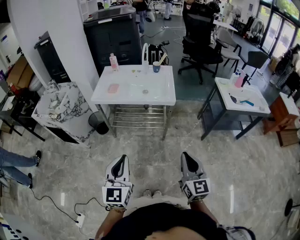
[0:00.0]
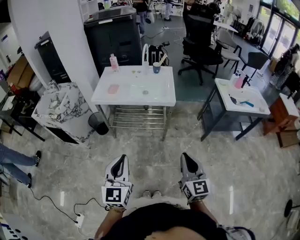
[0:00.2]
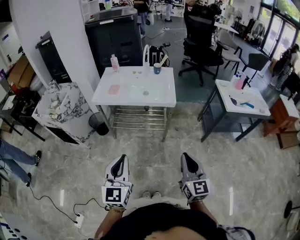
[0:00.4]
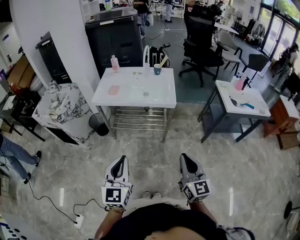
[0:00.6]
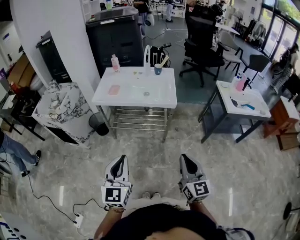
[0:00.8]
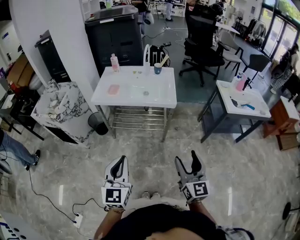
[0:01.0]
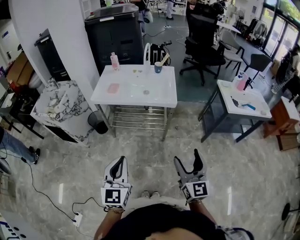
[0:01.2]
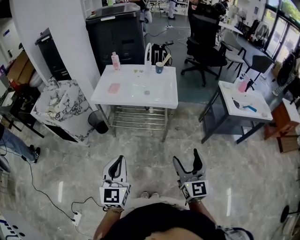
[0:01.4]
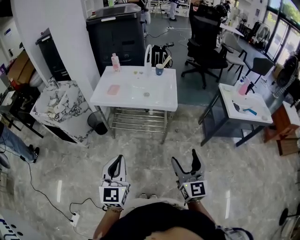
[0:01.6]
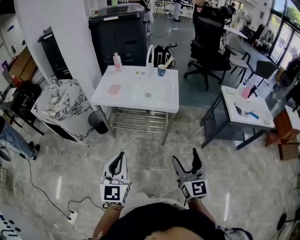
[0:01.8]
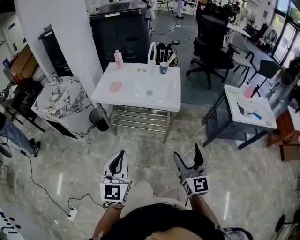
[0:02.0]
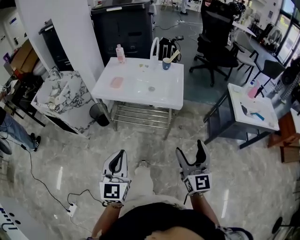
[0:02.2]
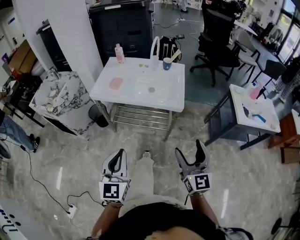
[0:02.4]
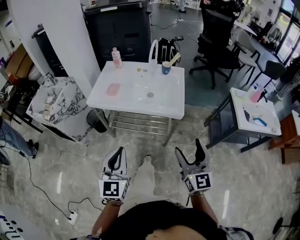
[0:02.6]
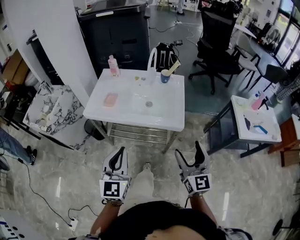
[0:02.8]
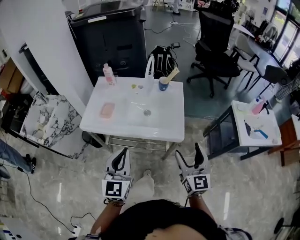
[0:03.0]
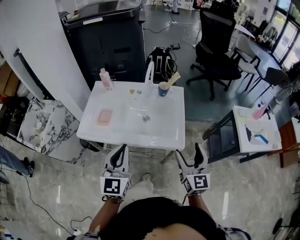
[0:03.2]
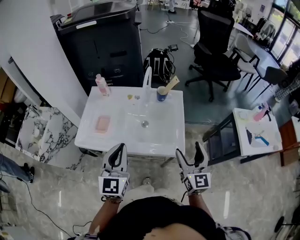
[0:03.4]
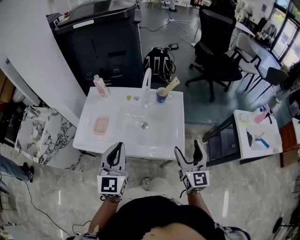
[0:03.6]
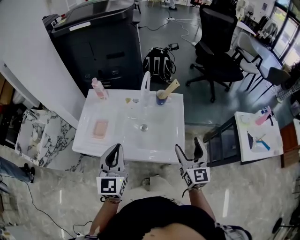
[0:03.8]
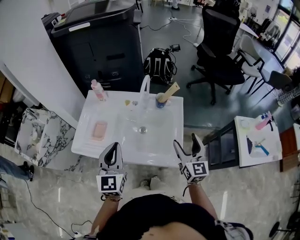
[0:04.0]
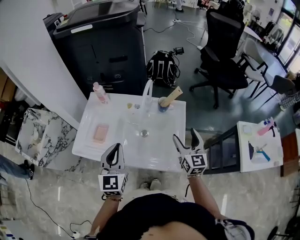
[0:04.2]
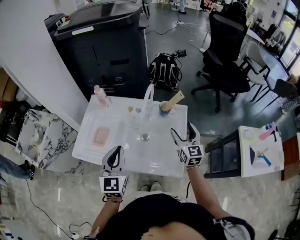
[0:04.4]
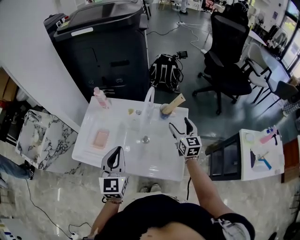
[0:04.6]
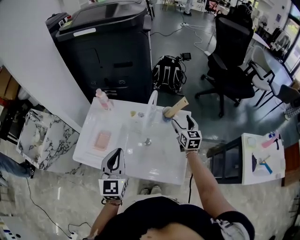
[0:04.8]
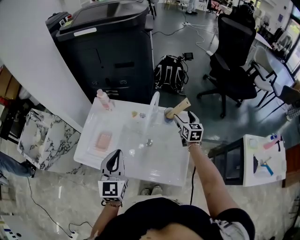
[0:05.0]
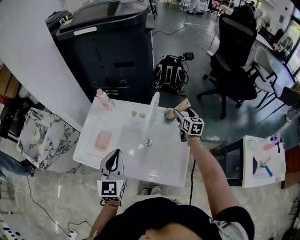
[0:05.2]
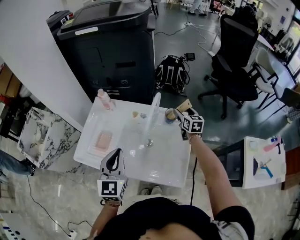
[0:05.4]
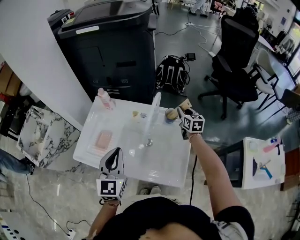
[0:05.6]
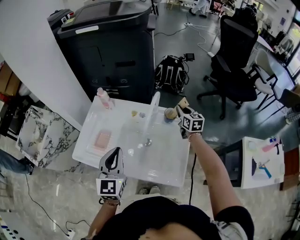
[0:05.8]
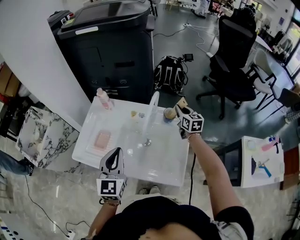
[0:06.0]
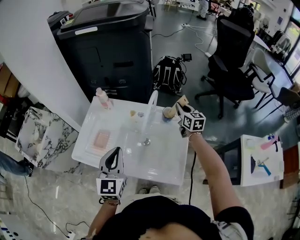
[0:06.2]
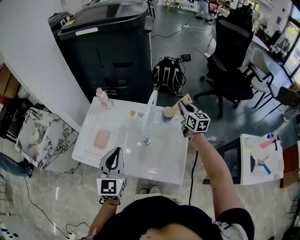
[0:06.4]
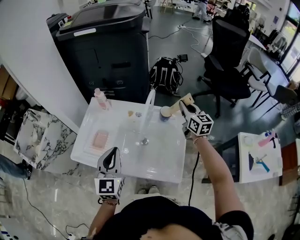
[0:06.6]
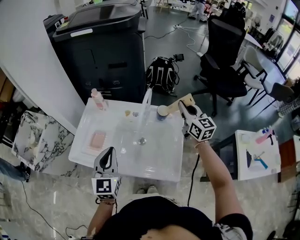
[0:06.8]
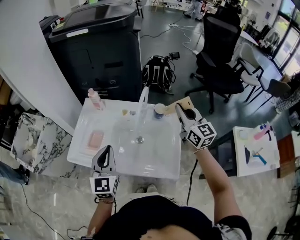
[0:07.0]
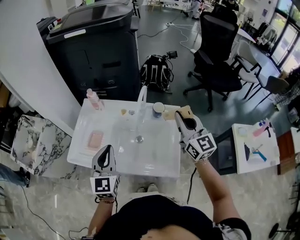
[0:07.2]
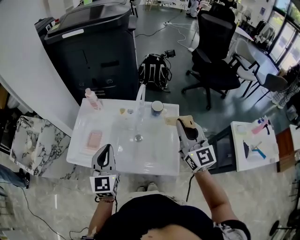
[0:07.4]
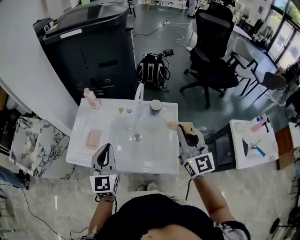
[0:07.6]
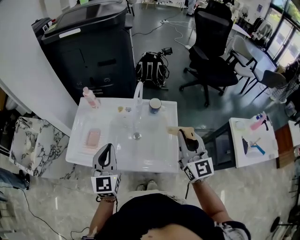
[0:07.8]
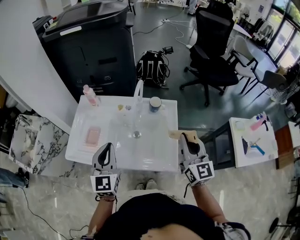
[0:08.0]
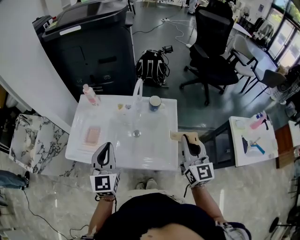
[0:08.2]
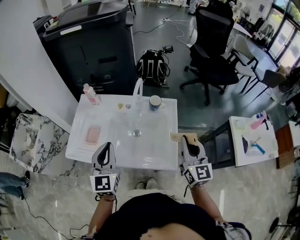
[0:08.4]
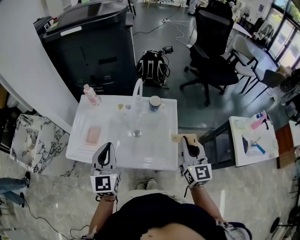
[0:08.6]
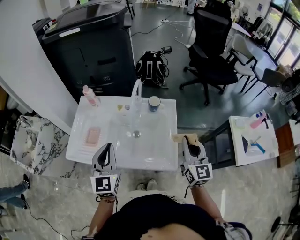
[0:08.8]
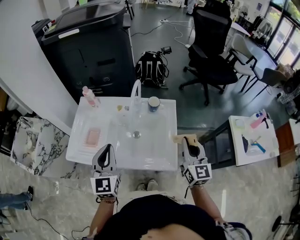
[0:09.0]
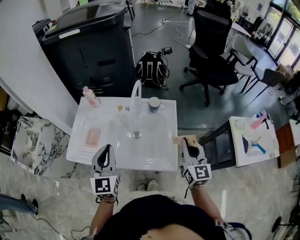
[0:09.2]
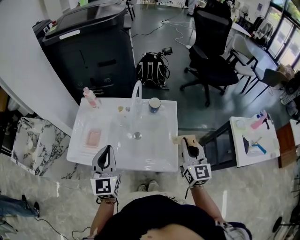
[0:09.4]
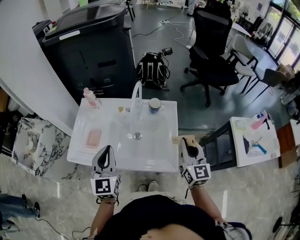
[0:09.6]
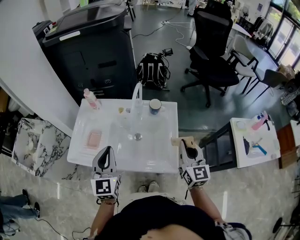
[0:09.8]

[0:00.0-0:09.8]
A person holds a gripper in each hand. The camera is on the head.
0:00.0 to 0:01.4: The right gripper opens.
0:01.4 to 0:02.8: Both grippers travel together forward, some 25 cm.
0:02.8 to 0:04.2: Both grippers travel together forward, about 35 cm.
0:04.2 to 0:05.6: The right gripper travels forward by approximately 25 cm, and closes its fingers.
0:05.6 to 0:07.0: The right gripper is displaced upward and backward by about 25 cm, and turns by approximately 30 degrees.
0:07.0 to 0:08.4: The right gripper is displaced backward by approximately 20 cm.
0:08.4 to 0:09.8: There are only small adjustments of the grippers.

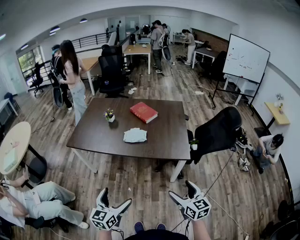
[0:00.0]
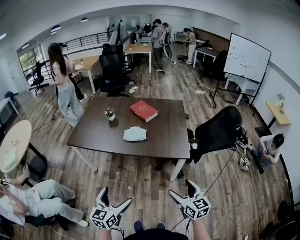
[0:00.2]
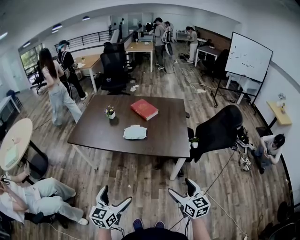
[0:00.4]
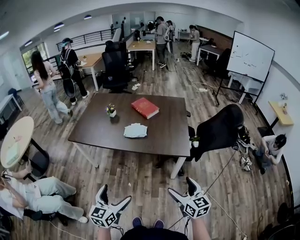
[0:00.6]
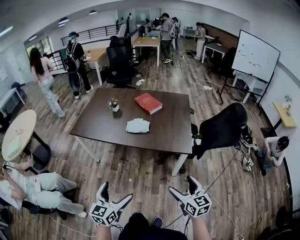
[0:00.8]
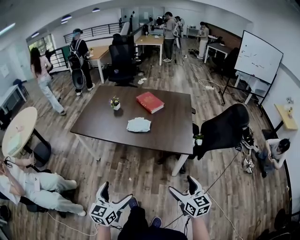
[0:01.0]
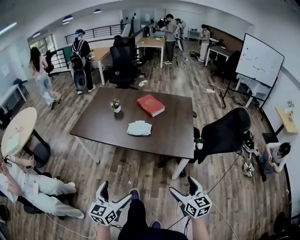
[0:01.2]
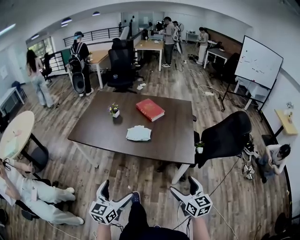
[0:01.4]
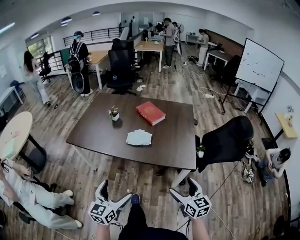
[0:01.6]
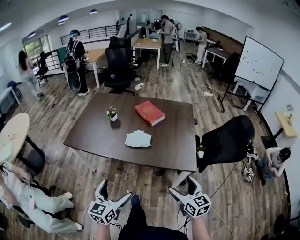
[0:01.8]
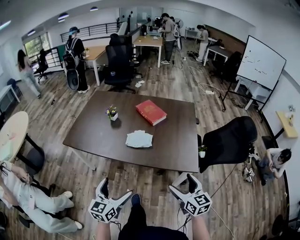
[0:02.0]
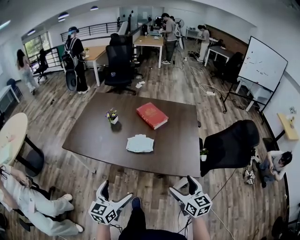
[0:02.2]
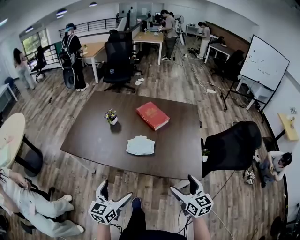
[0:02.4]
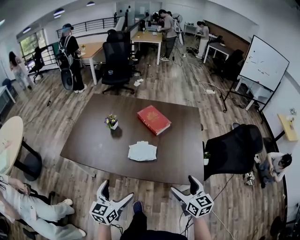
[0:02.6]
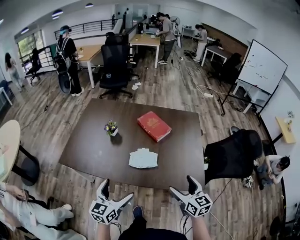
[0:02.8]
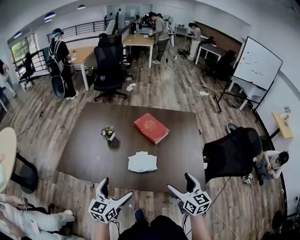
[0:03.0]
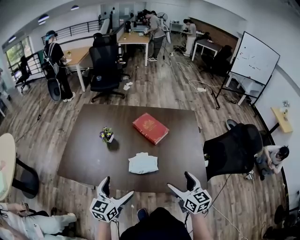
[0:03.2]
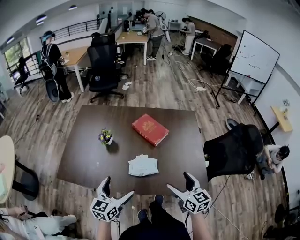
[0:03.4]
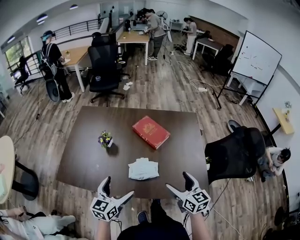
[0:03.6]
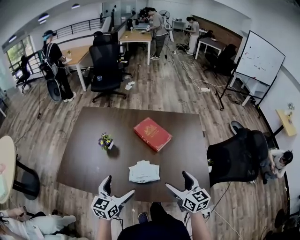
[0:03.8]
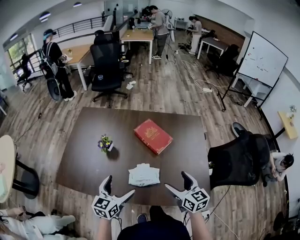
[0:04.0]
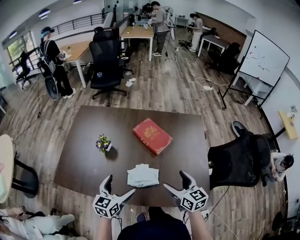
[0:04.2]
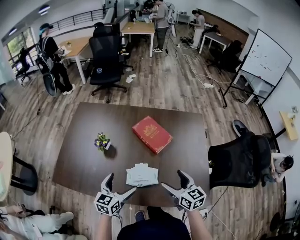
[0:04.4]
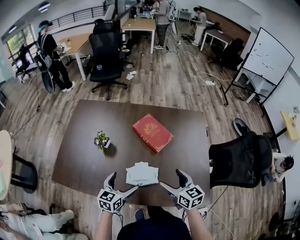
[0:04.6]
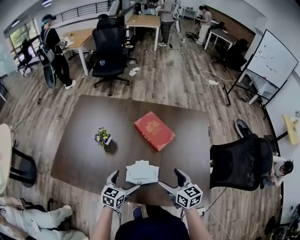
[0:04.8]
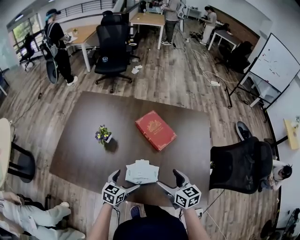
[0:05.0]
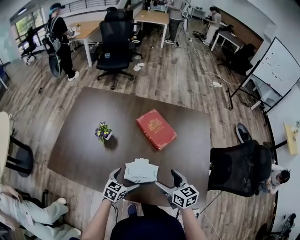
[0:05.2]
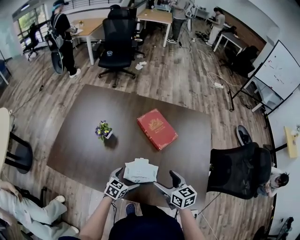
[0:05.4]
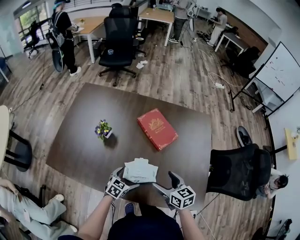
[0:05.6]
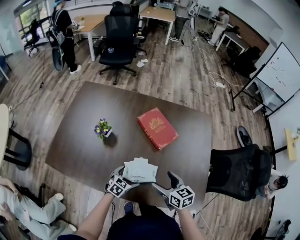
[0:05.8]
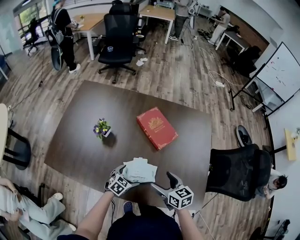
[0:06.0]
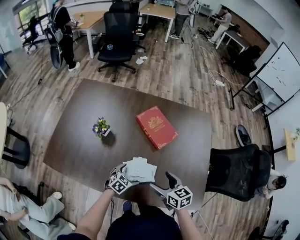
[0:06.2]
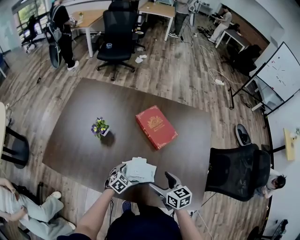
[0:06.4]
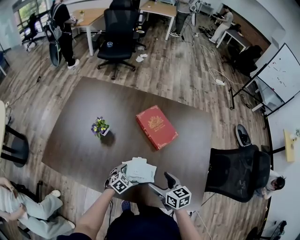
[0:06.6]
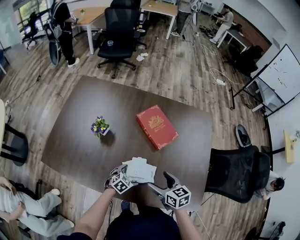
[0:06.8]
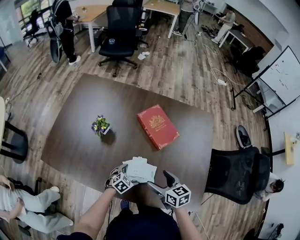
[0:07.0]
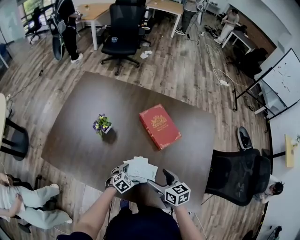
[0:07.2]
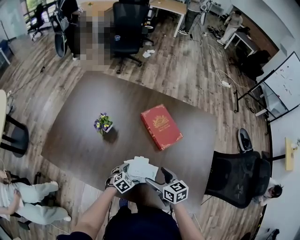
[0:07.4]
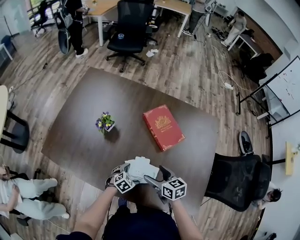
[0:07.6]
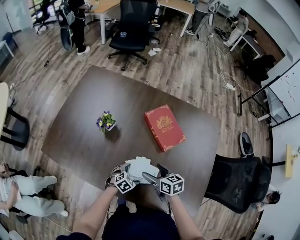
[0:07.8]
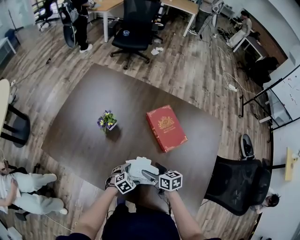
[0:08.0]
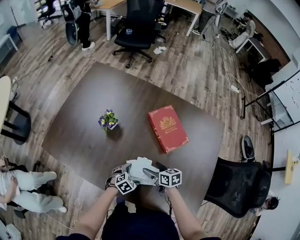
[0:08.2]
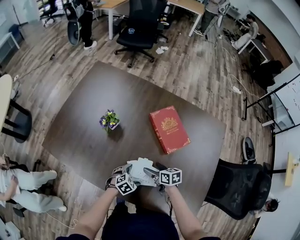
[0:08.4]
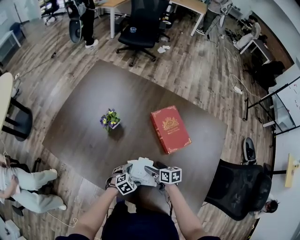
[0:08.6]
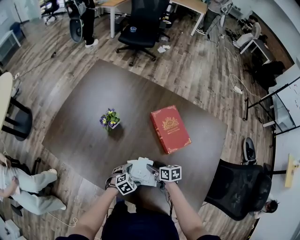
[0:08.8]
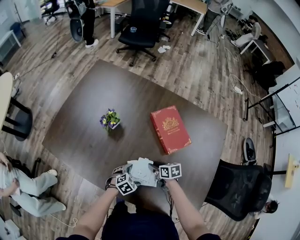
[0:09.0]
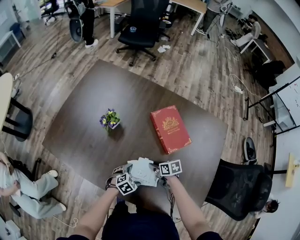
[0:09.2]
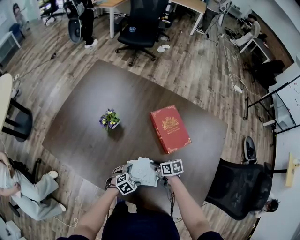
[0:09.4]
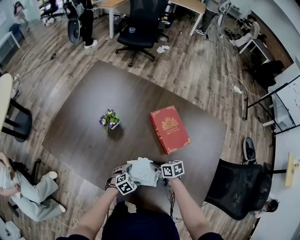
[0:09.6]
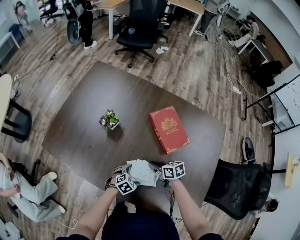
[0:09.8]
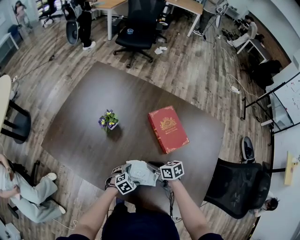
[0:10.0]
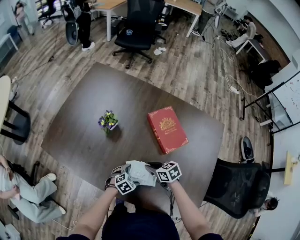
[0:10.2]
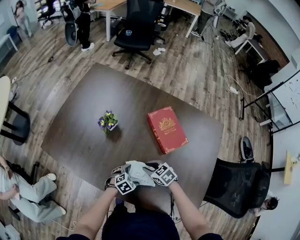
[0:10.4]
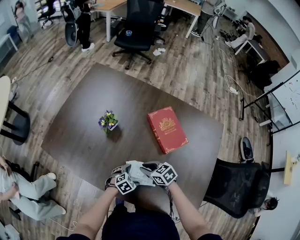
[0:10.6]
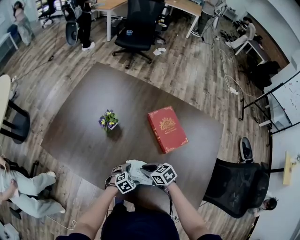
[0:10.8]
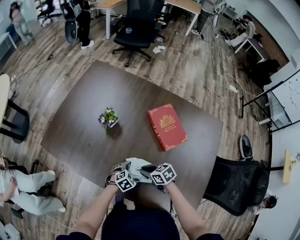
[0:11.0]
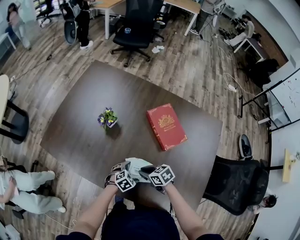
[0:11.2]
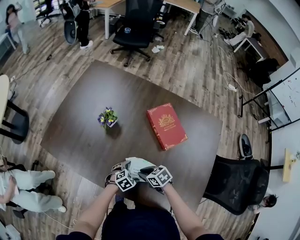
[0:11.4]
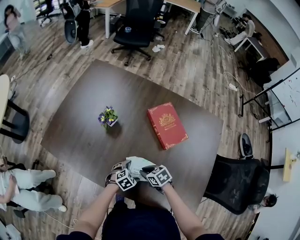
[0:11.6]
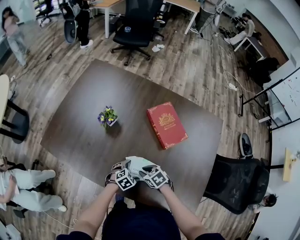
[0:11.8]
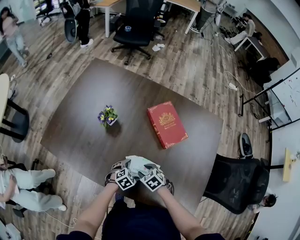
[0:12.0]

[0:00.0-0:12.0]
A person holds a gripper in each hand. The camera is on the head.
0:00.0 to 0:01.6: Both grippers travel together forward, roughly 10 cm.
0:01.6 to 0:03.0: The grippers both shift forward by about 30 cm.
0:03.0 to 0:04.4: The right gripper travels forward by approximately 15 cm, while the left gripper goes roughly 20 cm forward and downward.
0:04.4 to 0:06.0: The left gripper moves downward, roughly 20 cm, and changes its angle by roughly 30 degrees, while the right gripper is displaced downward by approximately 10 cm.
0:06.0 to 0:07.6: The left gripper goes approximately 5 cm downward; the right gripper travels to the left by roughly 5 cm.
0:07.6 to 0:09.0: The right gripper travels downward by about 15 cm, swivels roughly 20 degrees, and closes up.
0:09.0 to 0:10.4: The right gripper goes approximately 5 cm upward, and changes its angle by about 40 degrees.
0:10.4 to 0:12.0: The right gripper ends up some 5 cm from where it was.

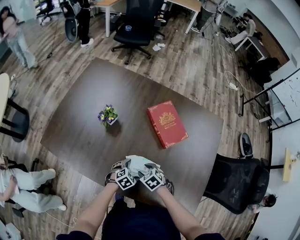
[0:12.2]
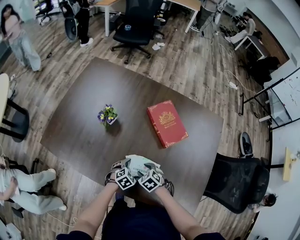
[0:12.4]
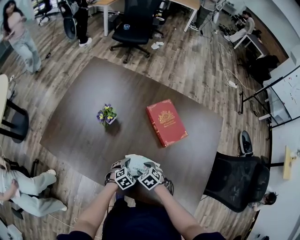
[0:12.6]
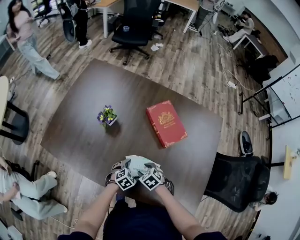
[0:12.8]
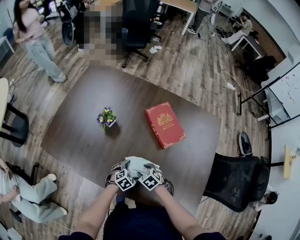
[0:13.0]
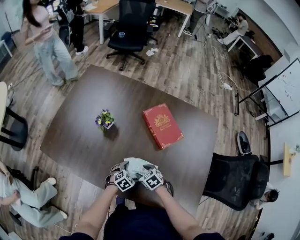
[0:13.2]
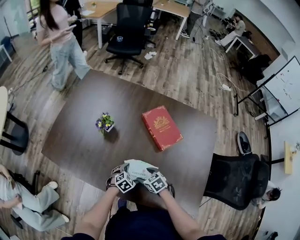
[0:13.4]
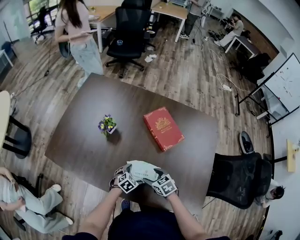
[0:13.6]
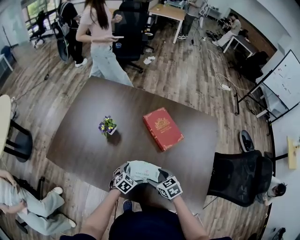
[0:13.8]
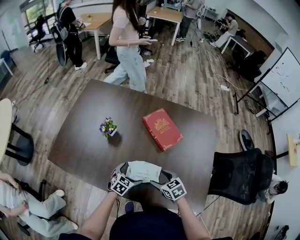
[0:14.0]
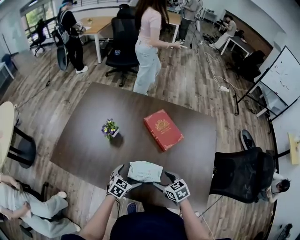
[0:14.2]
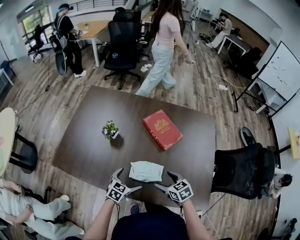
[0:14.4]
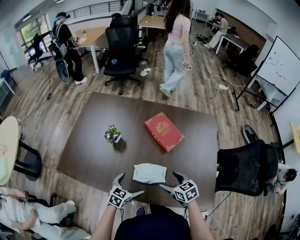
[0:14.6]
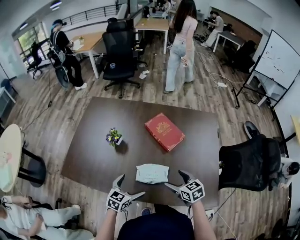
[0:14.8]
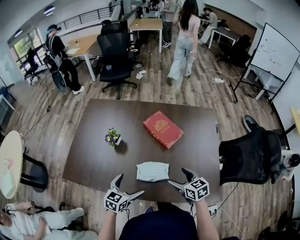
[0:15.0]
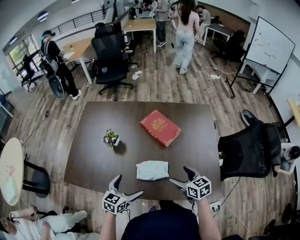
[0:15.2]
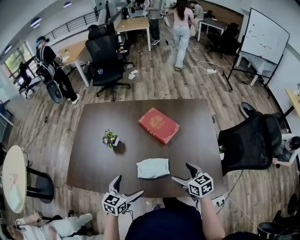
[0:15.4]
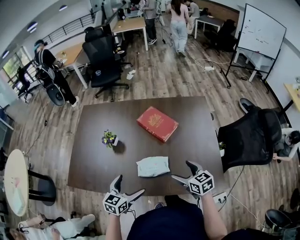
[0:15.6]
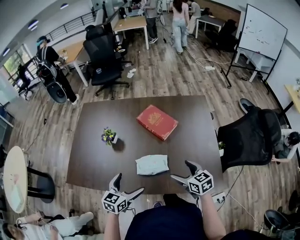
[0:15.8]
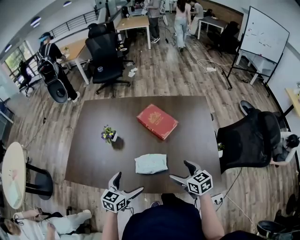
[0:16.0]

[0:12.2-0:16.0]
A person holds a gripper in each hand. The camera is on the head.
0:12.2 to 0:13.4: The grippers stay close to where they were, moving slightly.
0:13.4 to 0:14.8: The right gripper moves upward and to the right, approximately 20 cm, and changes its angle by roughly 30 degrees. Meanwhile the left gripper is displaced upward by about 20 cm, and turns by about 30 degrees.
0:14.8 to 0:16.0: The left gripper shifts about 5 cm upward, while the right gripper ends up about 5 cm from where it was.
